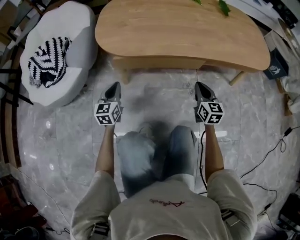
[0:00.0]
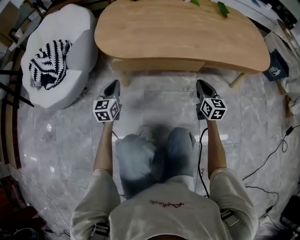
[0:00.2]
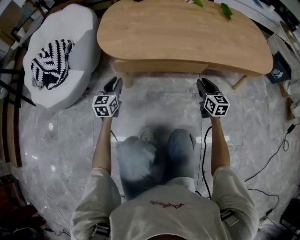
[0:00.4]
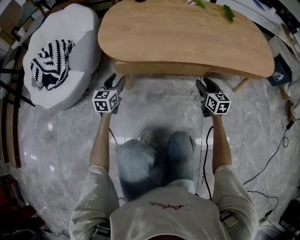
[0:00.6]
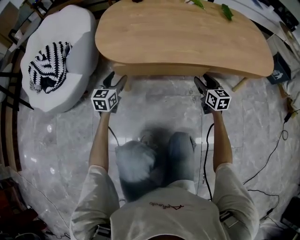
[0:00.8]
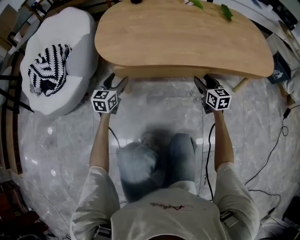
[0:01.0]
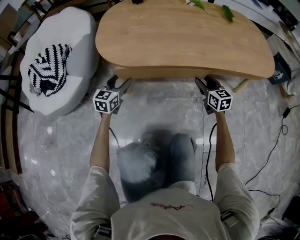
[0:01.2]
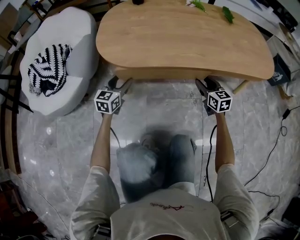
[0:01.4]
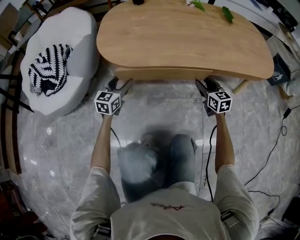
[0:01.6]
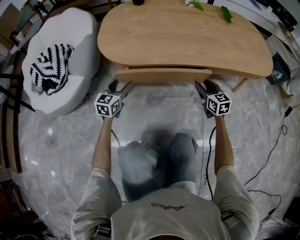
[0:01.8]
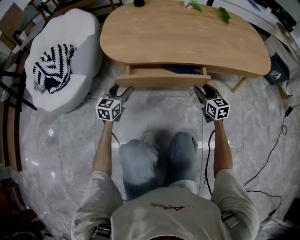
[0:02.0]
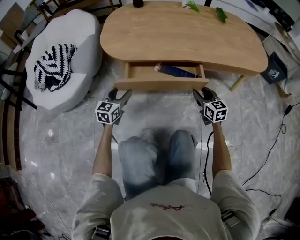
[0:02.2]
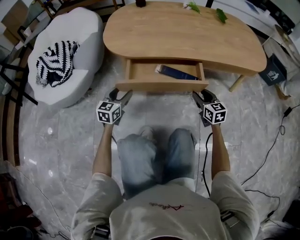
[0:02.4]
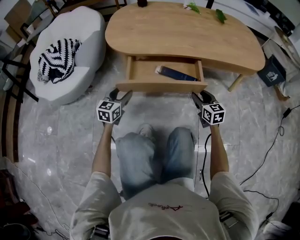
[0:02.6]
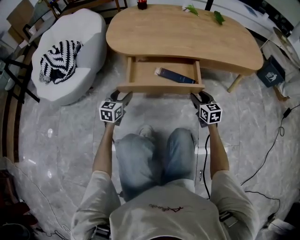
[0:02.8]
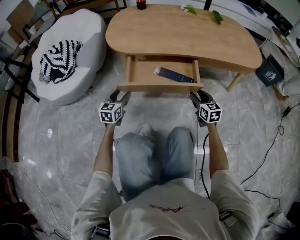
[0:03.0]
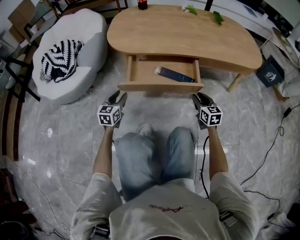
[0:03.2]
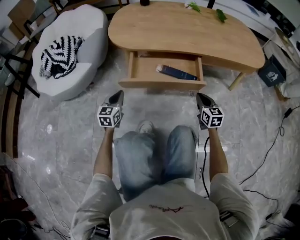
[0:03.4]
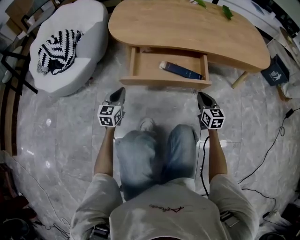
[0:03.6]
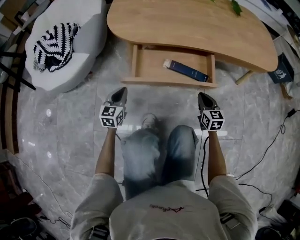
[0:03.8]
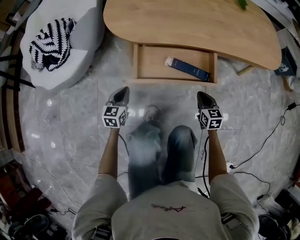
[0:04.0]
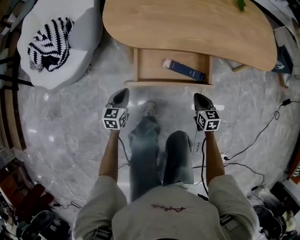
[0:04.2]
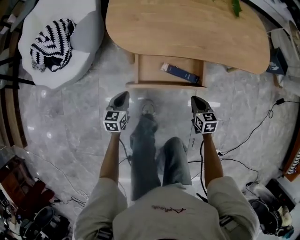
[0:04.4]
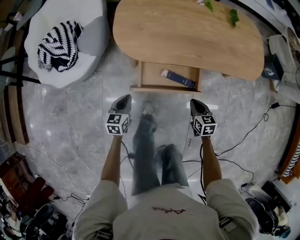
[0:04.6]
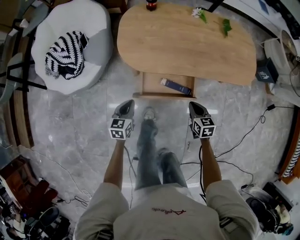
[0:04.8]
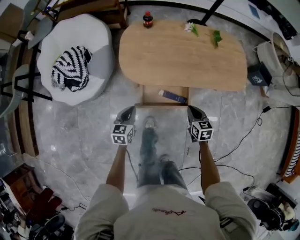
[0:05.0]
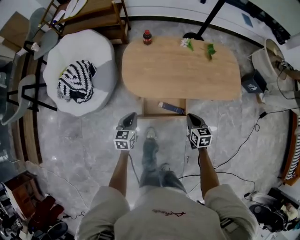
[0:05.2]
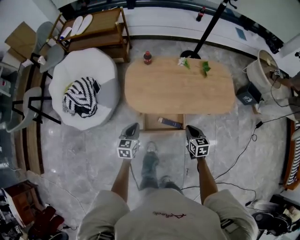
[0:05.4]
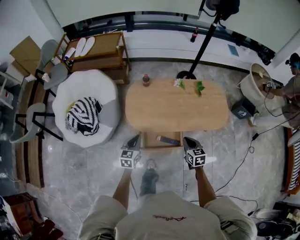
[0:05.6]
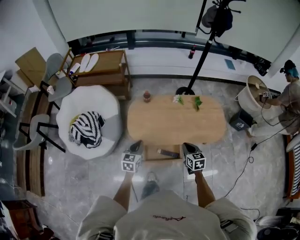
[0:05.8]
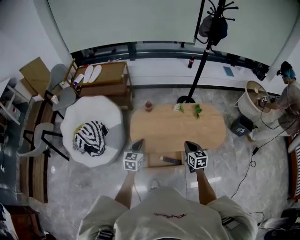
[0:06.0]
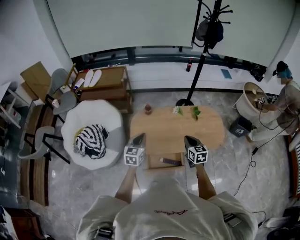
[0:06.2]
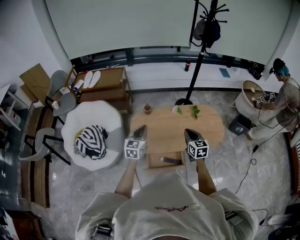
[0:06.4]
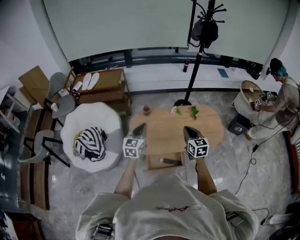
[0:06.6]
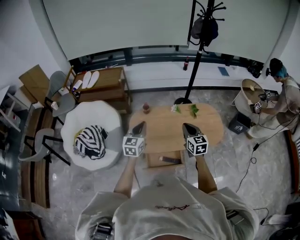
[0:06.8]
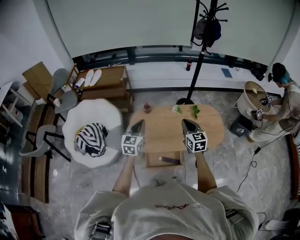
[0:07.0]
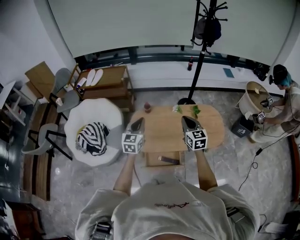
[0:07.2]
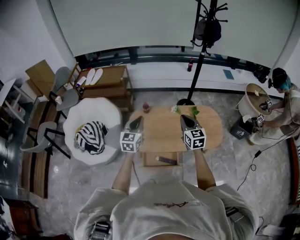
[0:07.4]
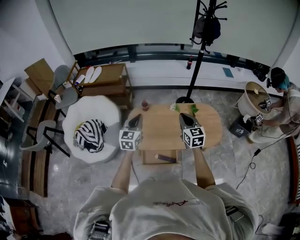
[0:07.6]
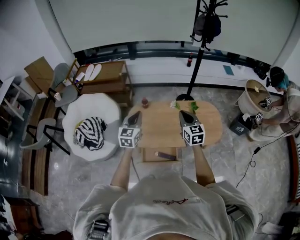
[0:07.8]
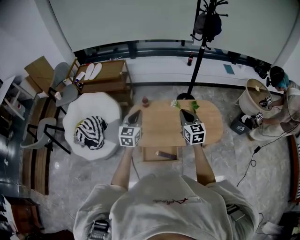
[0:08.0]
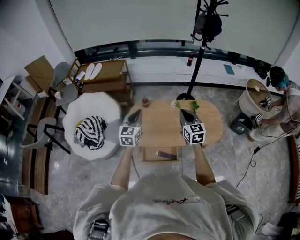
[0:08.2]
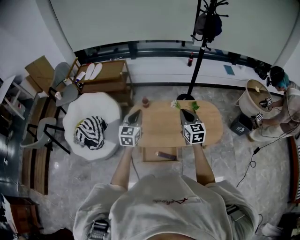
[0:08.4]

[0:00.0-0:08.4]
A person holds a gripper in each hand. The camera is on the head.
0:00.0 to 0:01.4: The grippers both shift forward by approximately 10 cm. The right gripper opens up. The left gripper opens its fingers.
0:01.4 to 0:02.8: Both grippers travel together backward, some 15 cm.
0:02.8 to 0:04.2: The right gripper goes some 5 cm to the left, and closes its fingers. The left gripper closes its fingers.
0:04.2 to 0:05.6: Both grippers move upward, approximately 50 cm.
0:05.6 to 0:07.0: Both grippers move upward and forward, some 25 cm. The right gripper turns by roughly 20 degrees.
0:07.0 to 0:08.4: There are only small adjustments of the grippers.

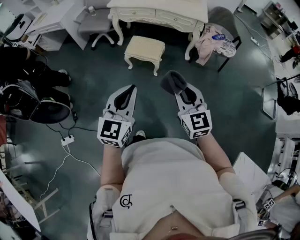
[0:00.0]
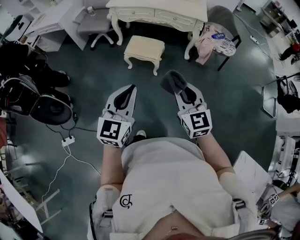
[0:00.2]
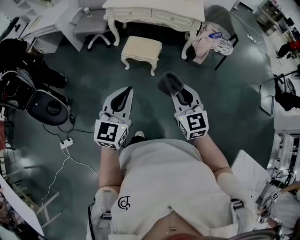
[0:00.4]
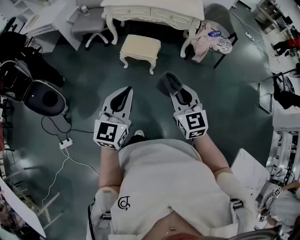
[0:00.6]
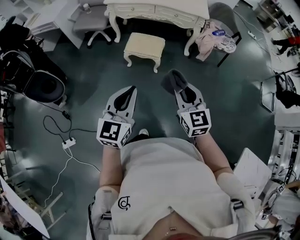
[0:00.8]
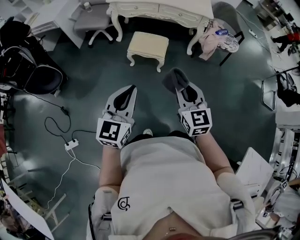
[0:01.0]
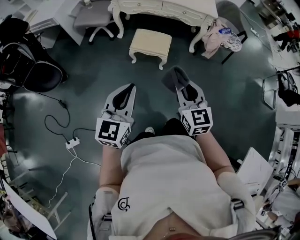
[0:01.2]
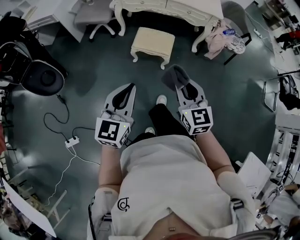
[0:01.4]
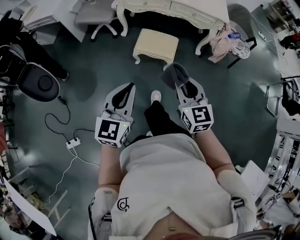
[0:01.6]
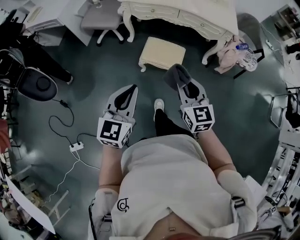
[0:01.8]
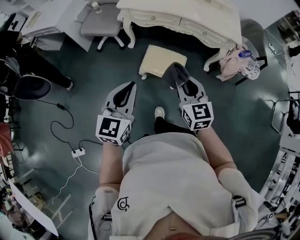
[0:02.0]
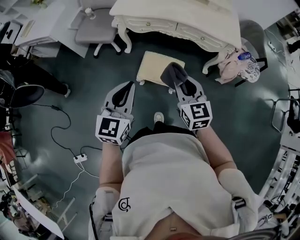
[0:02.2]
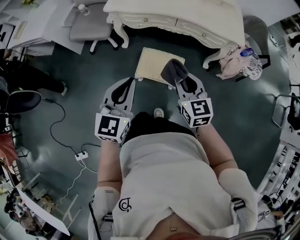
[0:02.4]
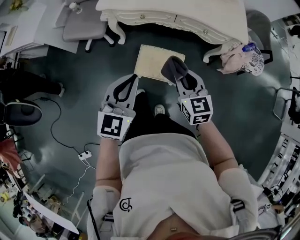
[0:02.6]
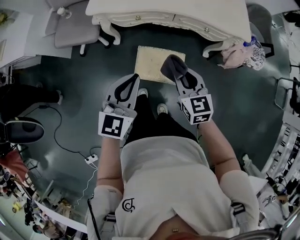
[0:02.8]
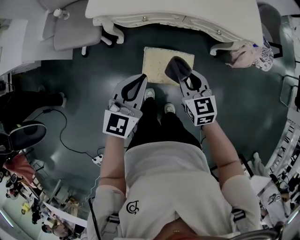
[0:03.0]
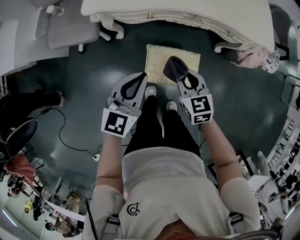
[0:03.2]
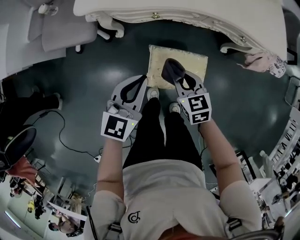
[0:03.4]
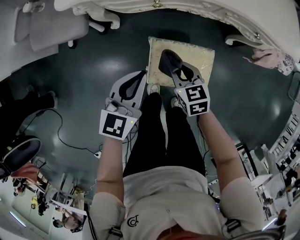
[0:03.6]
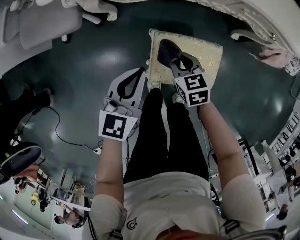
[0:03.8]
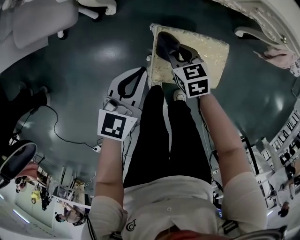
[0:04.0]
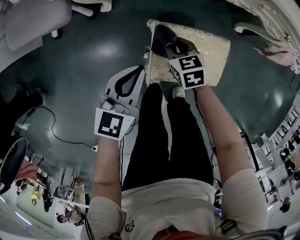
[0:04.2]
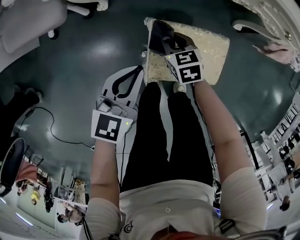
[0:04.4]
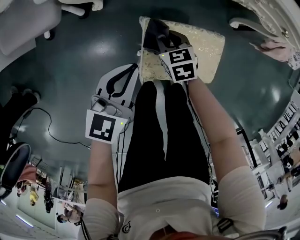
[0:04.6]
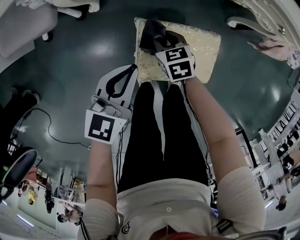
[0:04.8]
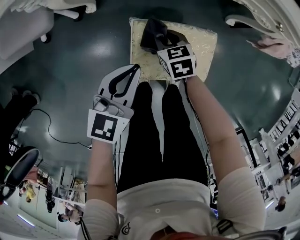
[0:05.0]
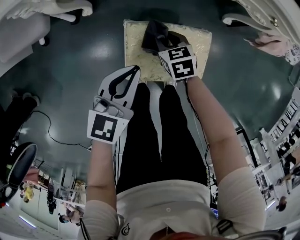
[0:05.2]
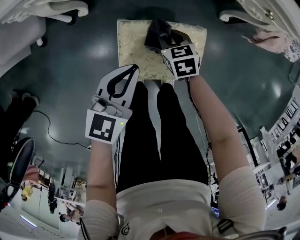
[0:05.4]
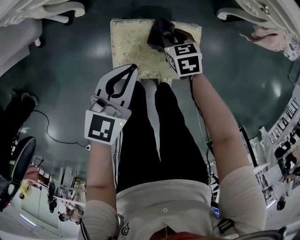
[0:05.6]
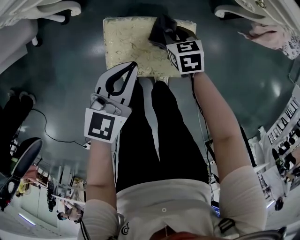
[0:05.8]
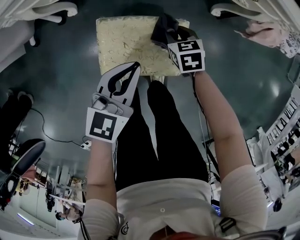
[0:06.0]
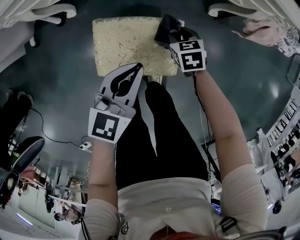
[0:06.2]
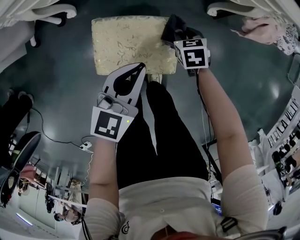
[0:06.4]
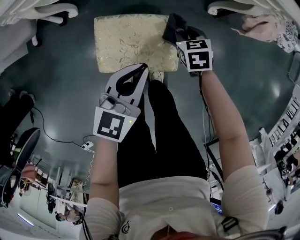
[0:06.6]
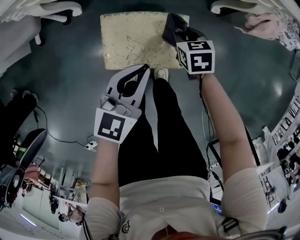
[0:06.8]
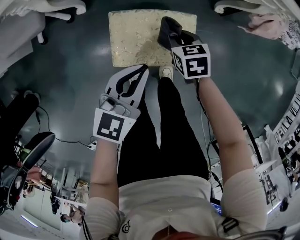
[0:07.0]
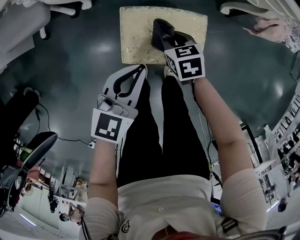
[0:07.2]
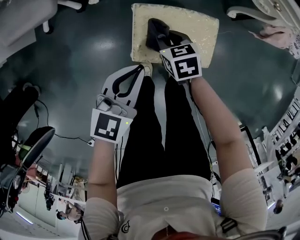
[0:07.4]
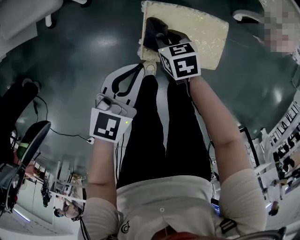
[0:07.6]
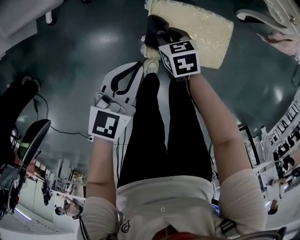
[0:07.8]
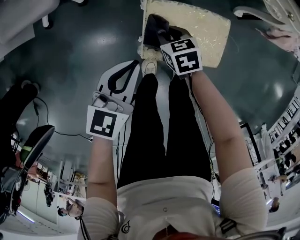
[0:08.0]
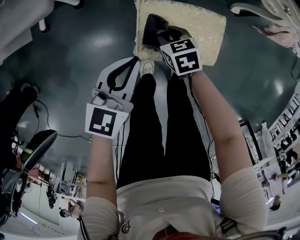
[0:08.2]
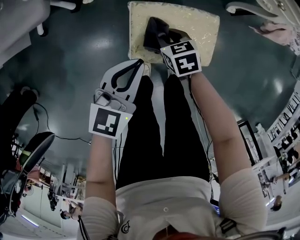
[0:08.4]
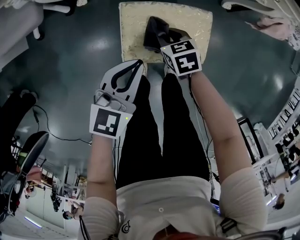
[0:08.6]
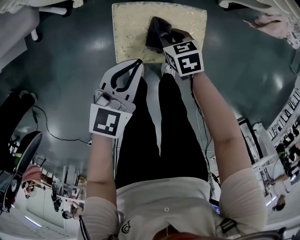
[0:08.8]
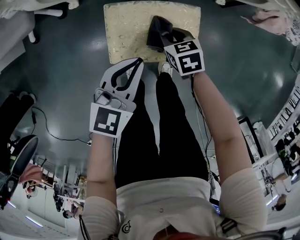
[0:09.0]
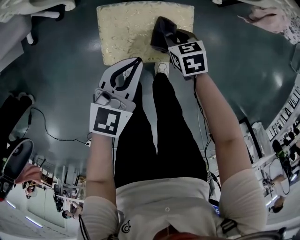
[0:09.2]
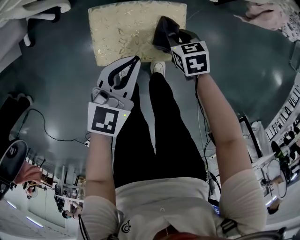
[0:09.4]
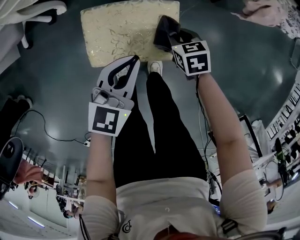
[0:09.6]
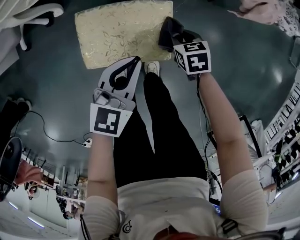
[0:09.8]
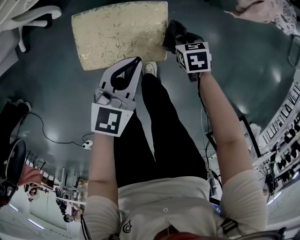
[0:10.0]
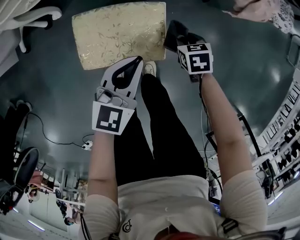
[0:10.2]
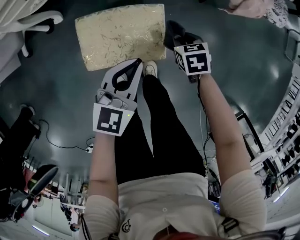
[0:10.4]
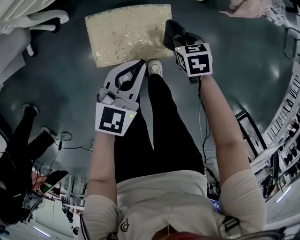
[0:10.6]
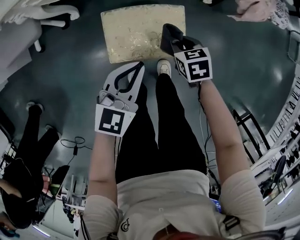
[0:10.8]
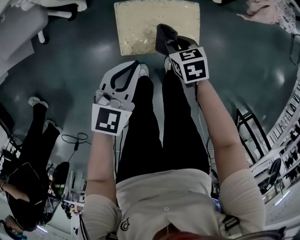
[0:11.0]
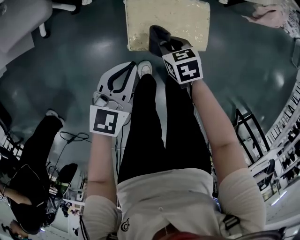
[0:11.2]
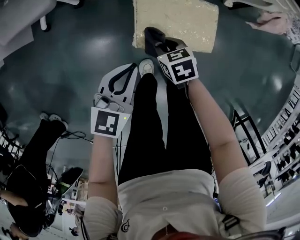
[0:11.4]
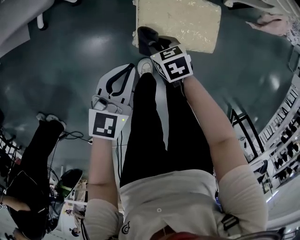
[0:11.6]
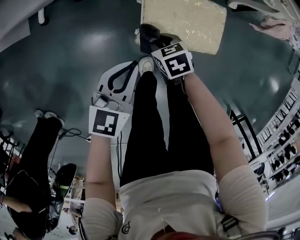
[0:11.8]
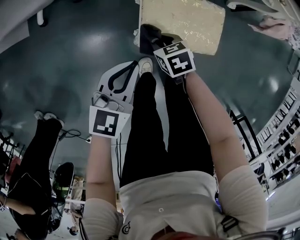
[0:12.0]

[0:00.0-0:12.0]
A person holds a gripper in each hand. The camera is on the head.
0:00.0 to 0:01.6: The left gripper shifts roughly 20 cm to the left and forward. Meanwhile the right gripper heads forward and to the left, covering approximately 20 cm.
0:01.6 to 0:03.0: The pair of grippers is taken forward, some 50 cm.
0:03.0 to 0:04.4: Both grippers move downward, approximately 35 cm. The right gripper rotates about 20 degrees.
0:04.4 to 0:06.0: Both grippers travel together to the right, roughly 20 cm.
0:06.0 to 0:07.6: The right gripper travels to the left by about 20 cm. Meanwhile the left gripper shifts roughly 20 cm to the left and backward.
0:07.6 to 0:09.0: Both grippers travel together to the right, approximately 15 cm.
0:09.0 to 0:10.4: The left gripper heads to the right, covering approximately 10 cm. Meanwhile the right gripper shifts approximately 15 cm to the right.
0:10.4 to 0:12.0: Both grippers travel together to the left, approximately 30 cm.

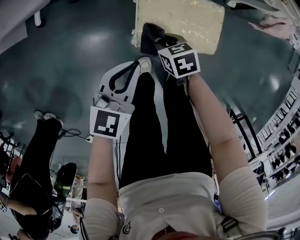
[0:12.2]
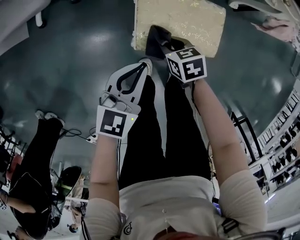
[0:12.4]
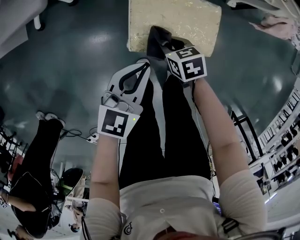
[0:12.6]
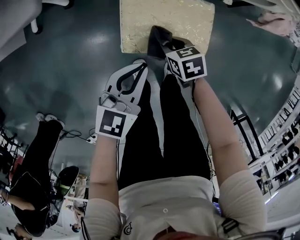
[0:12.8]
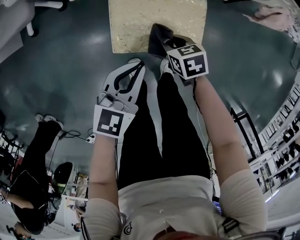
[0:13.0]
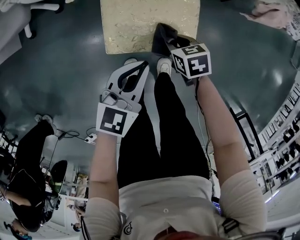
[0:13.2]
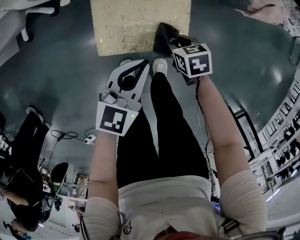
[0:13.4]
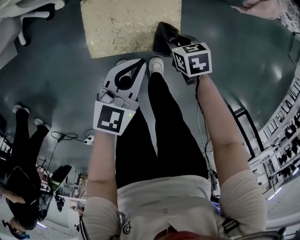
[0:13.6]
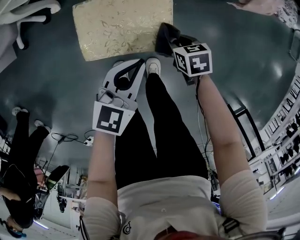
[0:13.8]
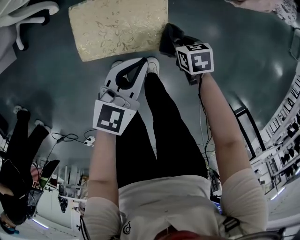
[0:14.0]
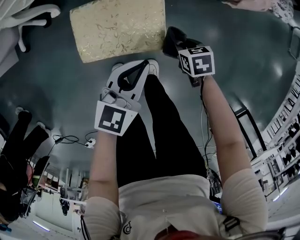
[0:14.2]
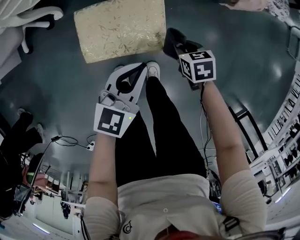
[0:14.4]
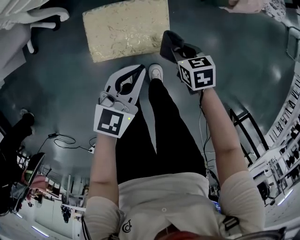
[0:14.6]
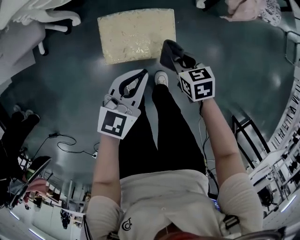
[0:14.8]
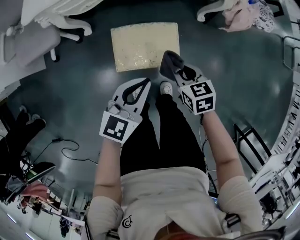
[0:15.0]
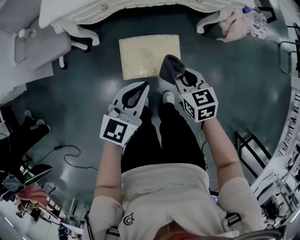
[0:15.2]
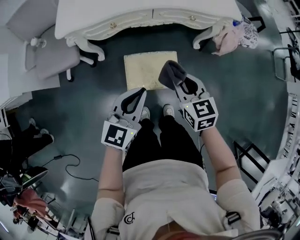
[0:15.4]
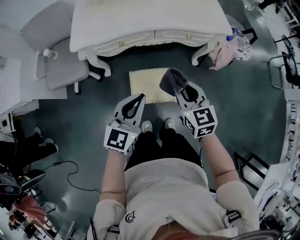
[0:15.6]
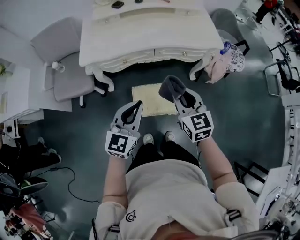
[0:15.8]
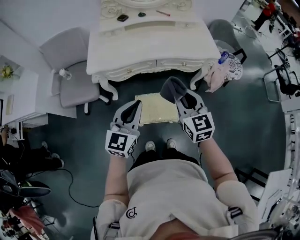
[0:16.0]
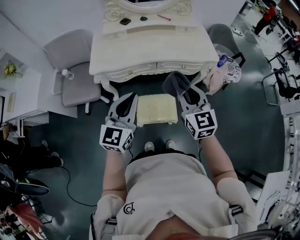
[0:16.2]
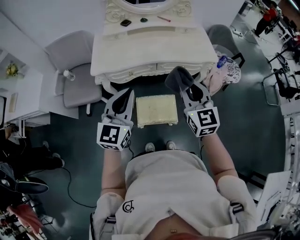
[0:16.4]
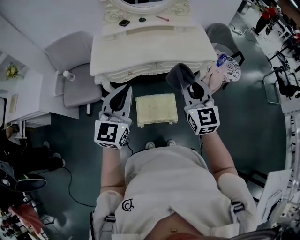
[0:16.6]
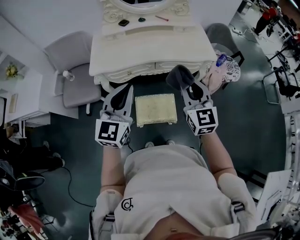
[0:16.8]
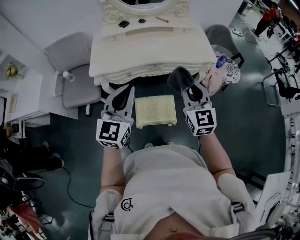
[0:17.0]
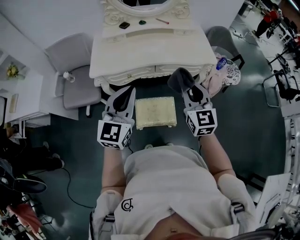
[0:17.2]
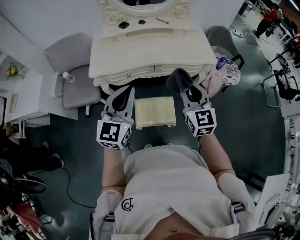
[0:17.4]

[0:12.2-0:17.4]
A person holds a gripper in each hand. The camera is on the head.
0:12.2 to 0:14.0: Both grippers travel together to the right, roughly 30 cm.
0:14.0 to 0:15.6: The right gripper heads upward, covering approximately 50 cm, and points its fingers some 50 degrees further upward; the left gripper is displaced upward and to the left by approximately 35 cm, and turns by approximately 20 degrees.
0:15.6 to 0:17.4: The two grippers go some 20 cm upward. The right gripper rotates some 20 degrees.
